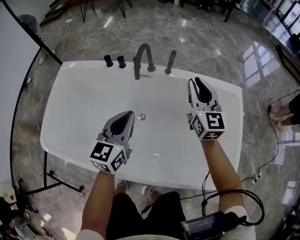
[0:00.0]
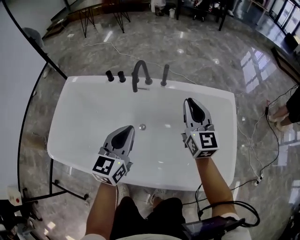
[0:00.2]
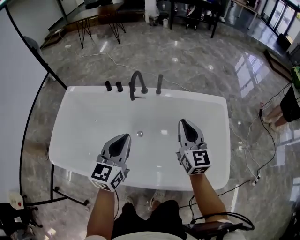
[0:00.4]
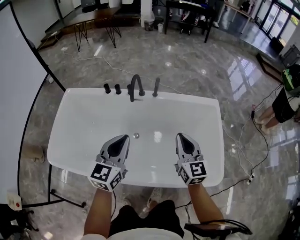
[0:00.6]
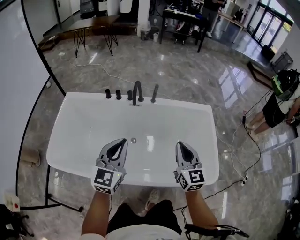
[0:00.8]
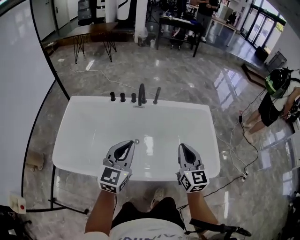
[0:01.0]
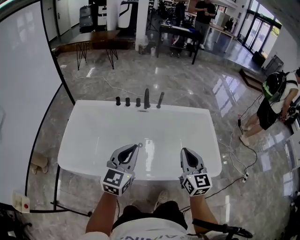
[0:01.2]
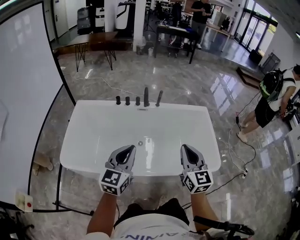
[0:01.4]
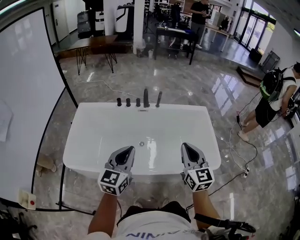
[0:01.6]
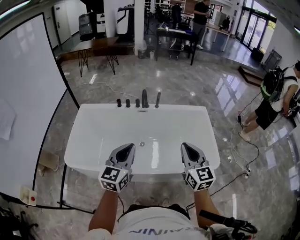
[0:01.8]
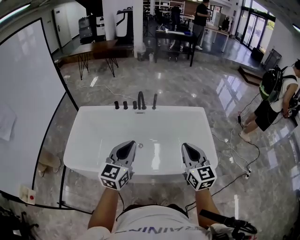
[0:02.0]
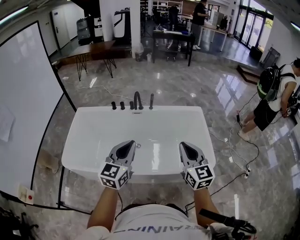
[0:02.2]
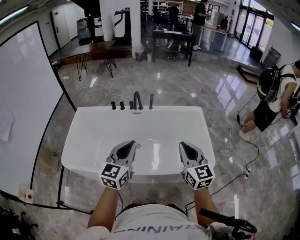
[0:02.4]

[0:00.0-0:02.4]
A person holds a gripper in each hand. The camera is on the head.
0:00.0 to 0:01.2: Both grippers move backward and upward, about 40 cm.
0:01.2 to 0:02.4: The right gripper heads to the right, backward and upward, covering some 15 cm, while the left gripper moves to the right and backward, approximately 15 cm.

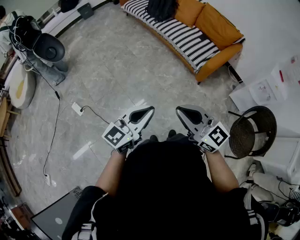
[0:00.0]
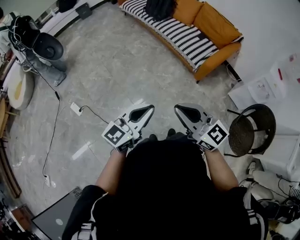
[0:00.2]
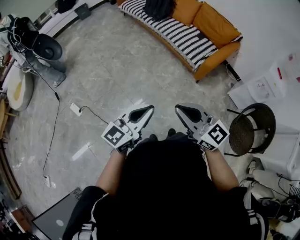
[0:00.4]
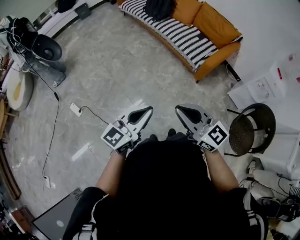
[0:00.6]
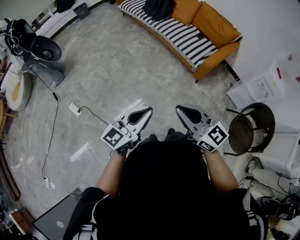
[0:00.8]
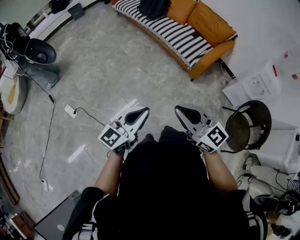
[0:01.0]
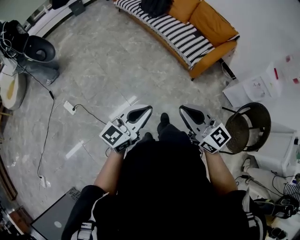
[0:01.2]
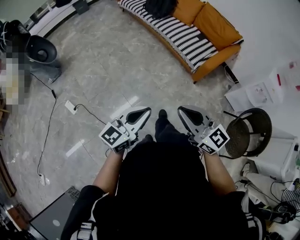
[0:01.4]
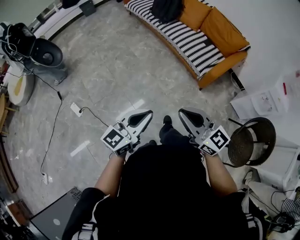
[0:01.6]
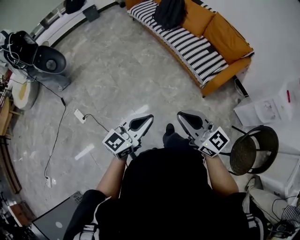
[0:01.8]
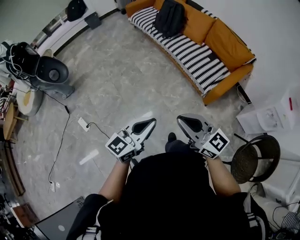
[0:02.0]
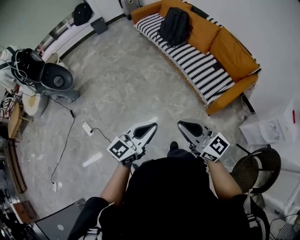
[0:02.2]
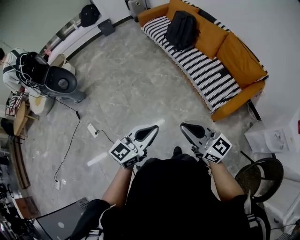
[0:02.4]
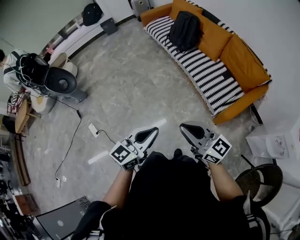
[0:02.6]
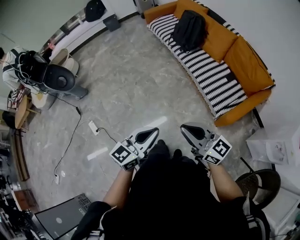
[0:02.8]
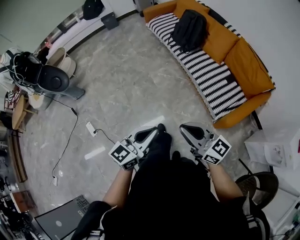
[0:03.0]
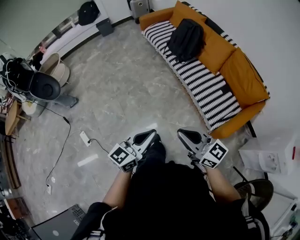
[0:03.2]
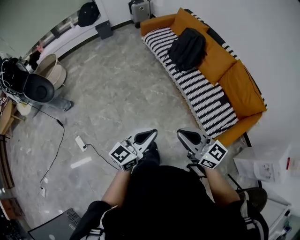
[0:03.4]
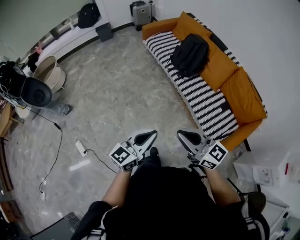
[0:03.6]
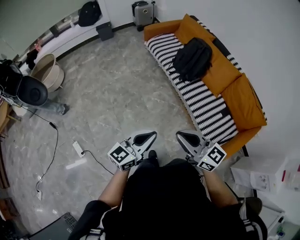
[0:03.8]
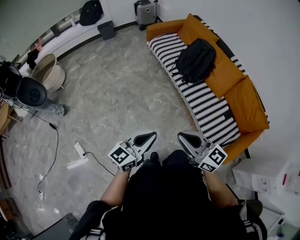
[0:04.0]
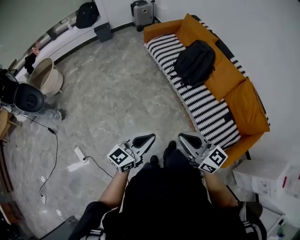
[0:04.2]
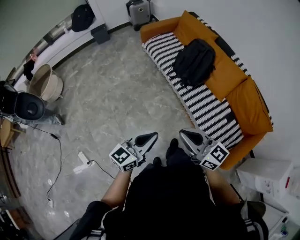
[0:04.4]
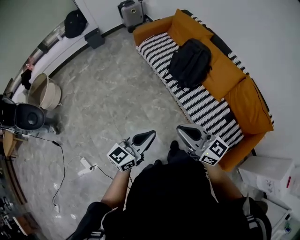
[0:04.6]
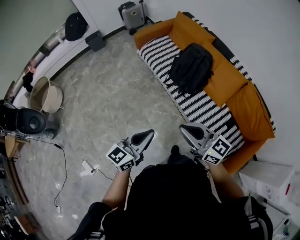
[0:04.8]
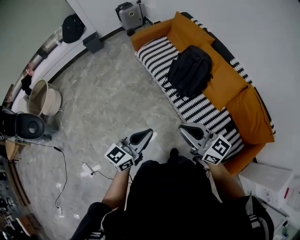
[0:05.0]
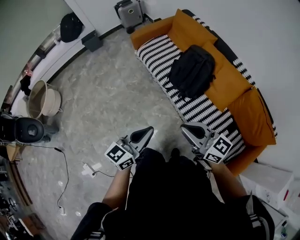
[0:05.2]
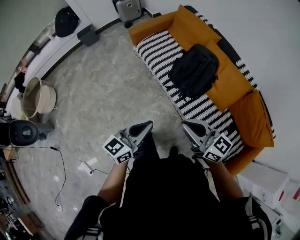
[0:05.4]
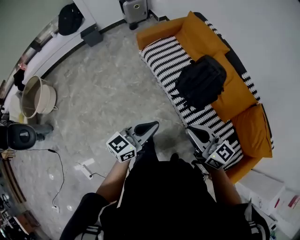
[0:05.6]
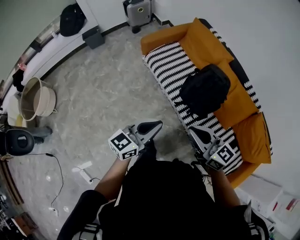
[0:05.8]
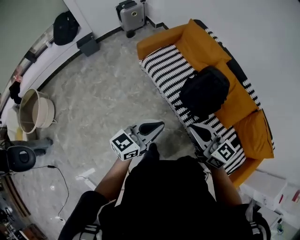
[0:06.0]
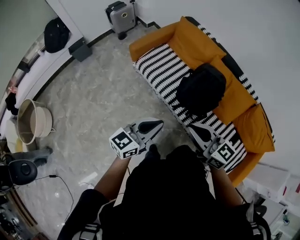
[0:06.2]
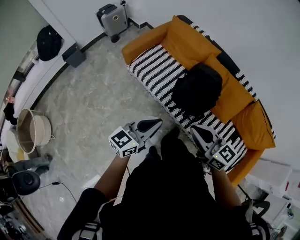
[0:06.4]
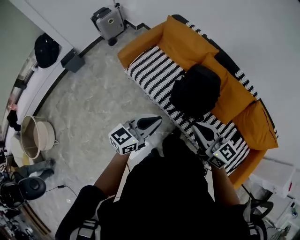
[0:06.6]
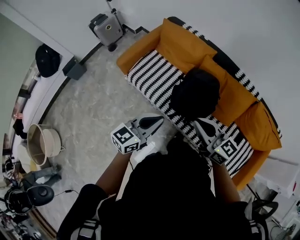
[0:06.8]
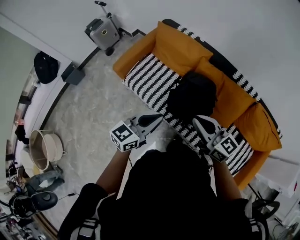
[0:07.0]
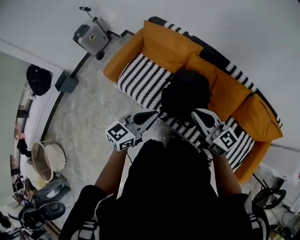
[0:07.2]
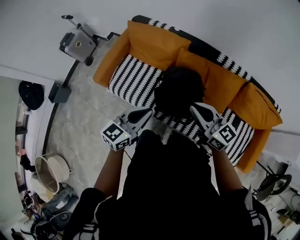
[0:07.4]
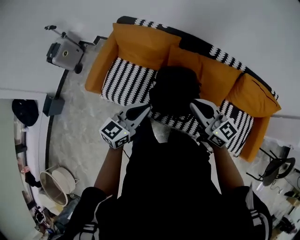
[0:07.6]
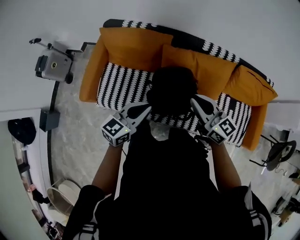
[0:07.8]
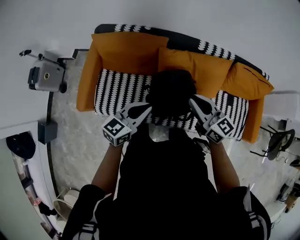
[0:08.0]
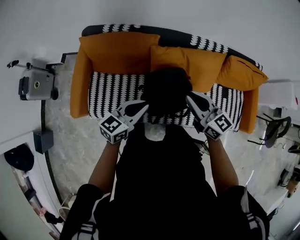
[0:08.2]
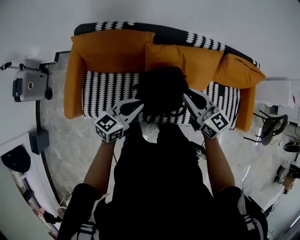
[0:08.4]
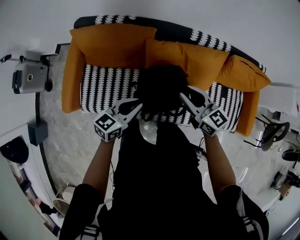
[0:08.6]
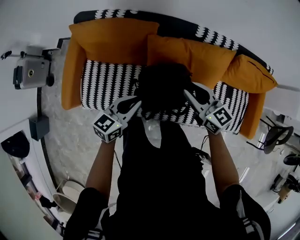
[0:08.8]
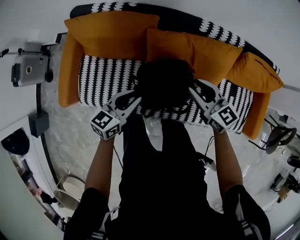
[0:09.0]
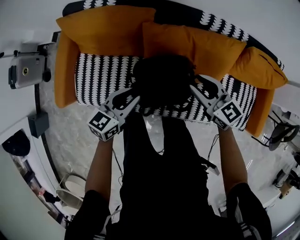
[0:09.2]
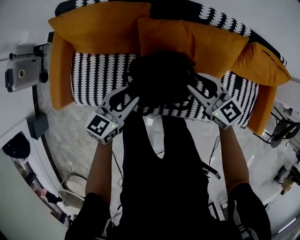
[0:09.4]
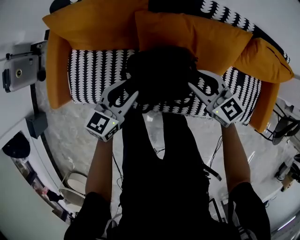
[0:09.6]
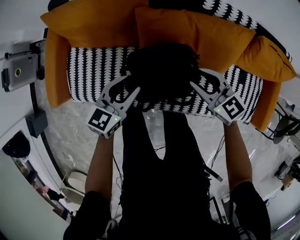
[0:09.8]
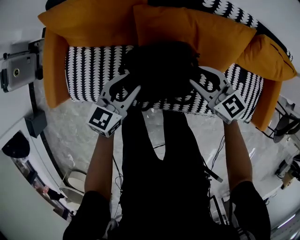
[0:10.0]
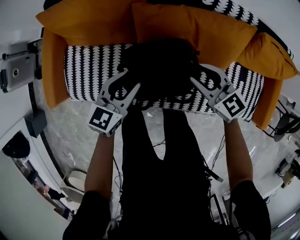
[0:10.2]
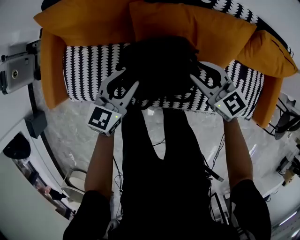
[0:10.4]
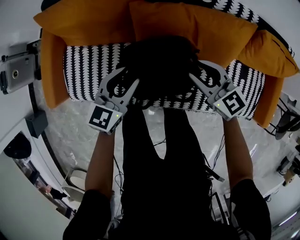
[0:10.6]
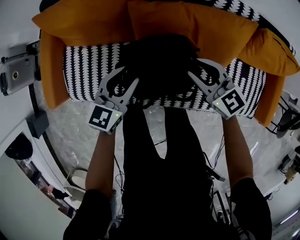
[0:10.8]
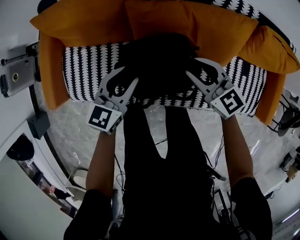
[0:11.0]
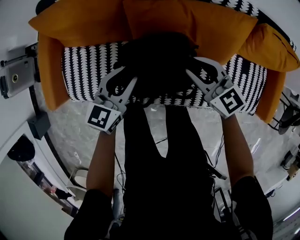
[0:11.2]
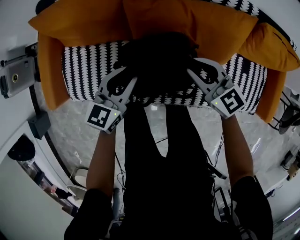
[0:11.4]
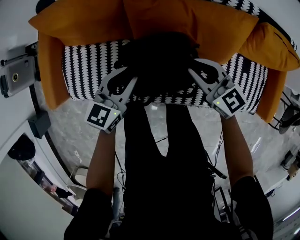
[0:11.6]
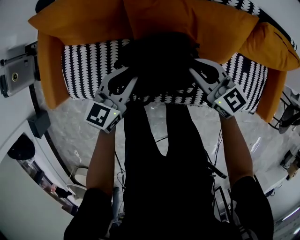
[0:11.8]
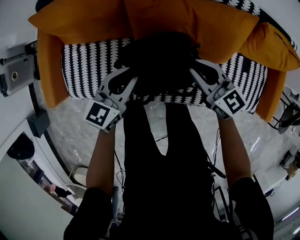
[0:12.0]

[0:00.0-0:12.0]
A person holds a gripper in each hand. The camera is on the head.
0:00.0 to 0:01.6: Both grippers travel together forward, roughly 10 cm.
0:01.6 to 0:03.0: Both grippers move forward, approximately 30 cm.
0:03.0 to 0:04.4: The two grippers go about 35 cm forward.
0:04.4 to 0:06.0: The two grippers travel together, forward, approximately 40 cm.
0:06.0 to 0:07.6: The left gripper ends up about 35 cm from where it was, and swivels approximately 30 degrees. The right gripper moves approximately 35 cm, and turns by approximately 30 degrees.
0:07.6 to 0:09.0: Both grippers travel together downward and forward, some 20 cm. The right gripper opens its fingers.
0:09.0 to 0:10.4: The grippers both shift downward by about 10 cm.
0:10.4 to 0:12.0: The grippers move only a little.

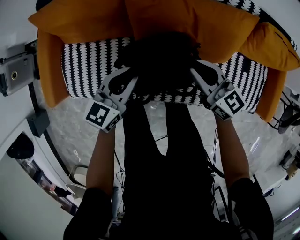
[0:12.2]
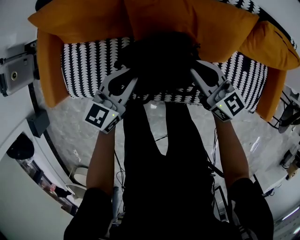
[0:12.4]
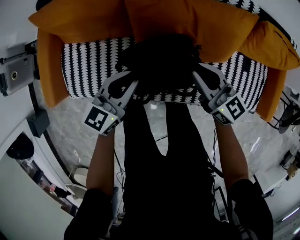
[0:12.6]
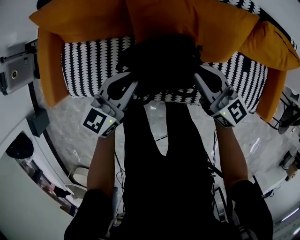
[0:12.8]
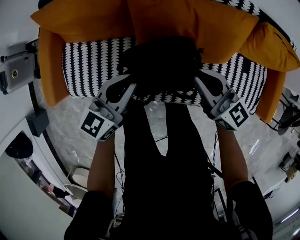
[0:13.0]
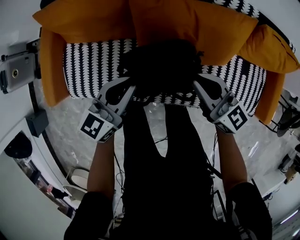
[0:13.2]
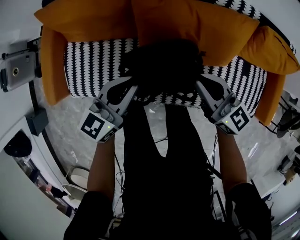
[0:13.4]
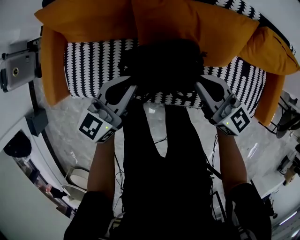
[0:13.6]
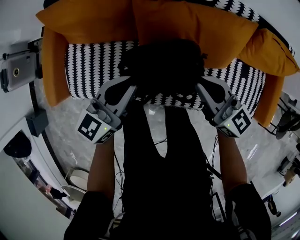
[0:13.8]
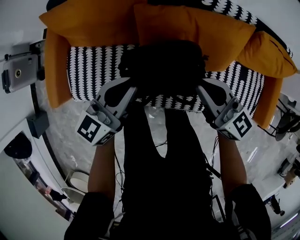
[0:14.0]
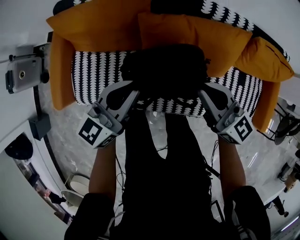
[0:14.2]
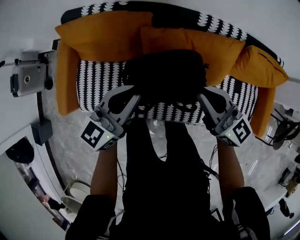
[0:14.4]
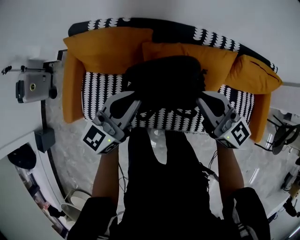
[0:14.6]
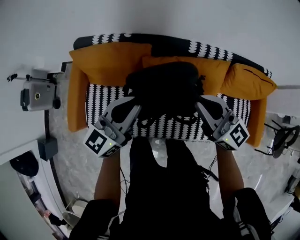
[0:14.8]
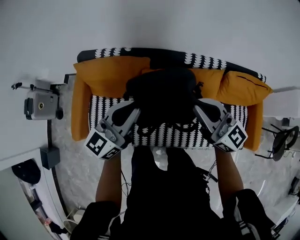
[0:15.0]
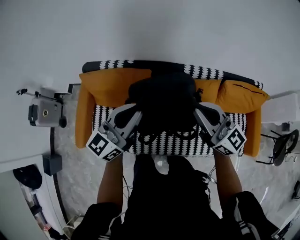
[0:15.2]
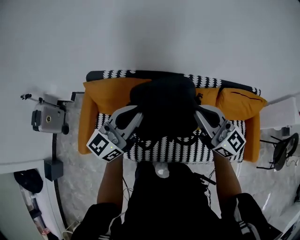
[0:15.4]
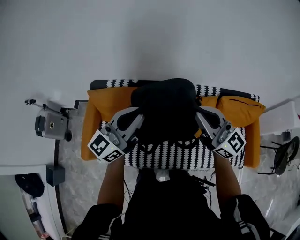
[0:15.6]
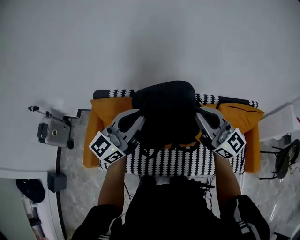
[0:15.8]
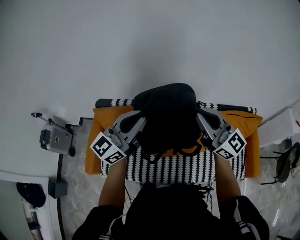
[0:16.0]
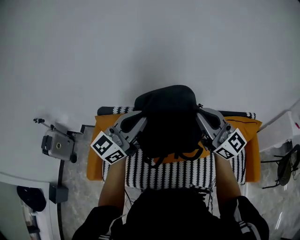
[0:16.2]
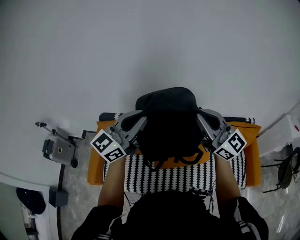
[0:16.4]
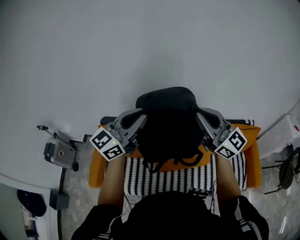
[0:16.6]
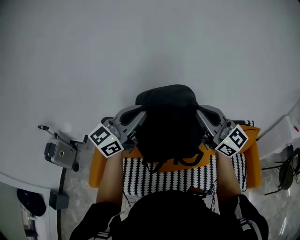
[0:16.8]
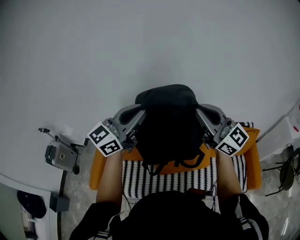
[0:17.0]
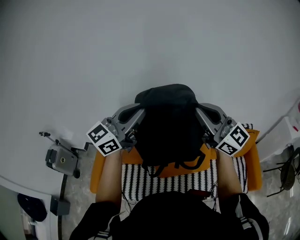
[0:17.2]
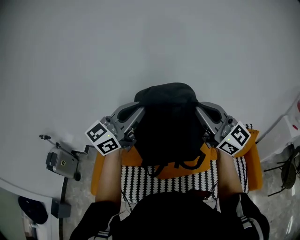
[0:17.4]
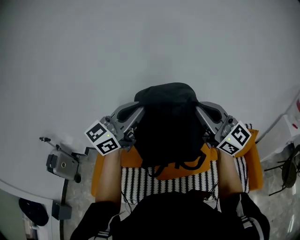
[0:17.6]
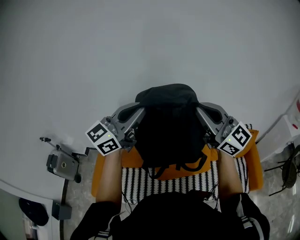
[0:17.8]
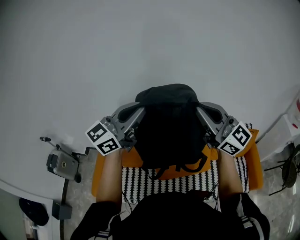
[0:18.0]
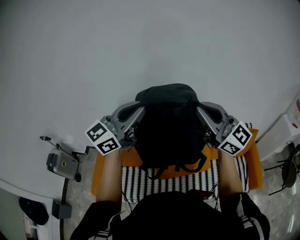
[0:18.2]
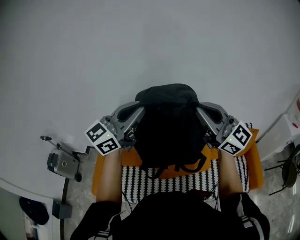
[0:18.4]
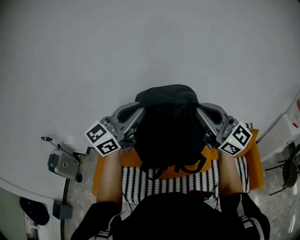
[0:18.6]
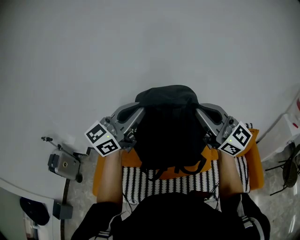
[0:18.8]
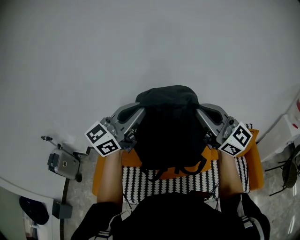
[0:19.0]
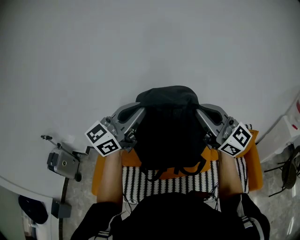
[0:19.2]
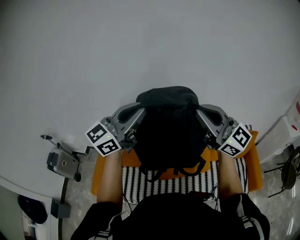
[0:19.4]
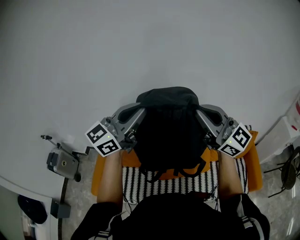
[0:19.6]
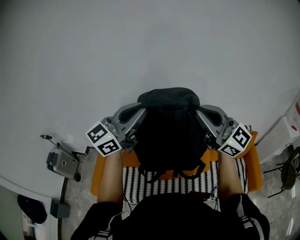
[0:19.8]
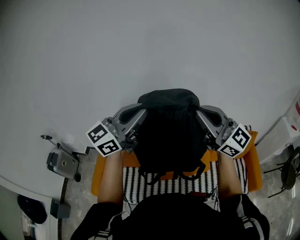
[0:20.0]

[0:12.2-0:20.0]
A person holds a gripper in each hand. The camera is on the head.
0:12.2 to 0:13.8: Both grippers travel together upward, about 10 cm.
0:13.8 to 0:15.4: The two grippers go about 30 cm upward. The left gripper changes its angle by about 20 degrees, while the right gripper changes its angle by about 20 degrees.
0:15.4 to 0:16.8: Both grippers travel together upward, some 20 cm.
0:16.8 to 0:18.4: The two grippers go approximately 5 cm upward.
0:18.4 to 0:20.0: The grippers stay close to where they were, moving slightly.

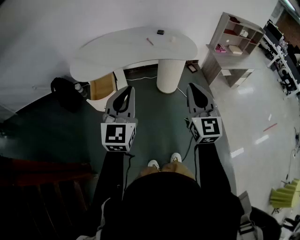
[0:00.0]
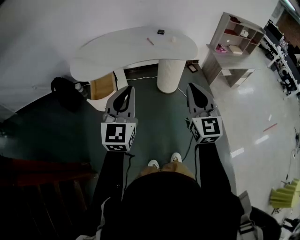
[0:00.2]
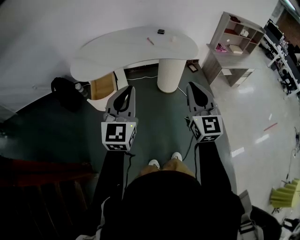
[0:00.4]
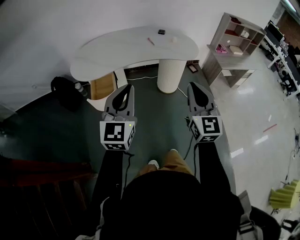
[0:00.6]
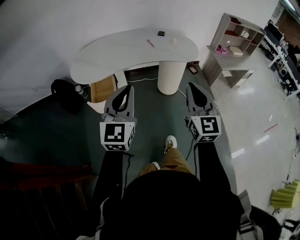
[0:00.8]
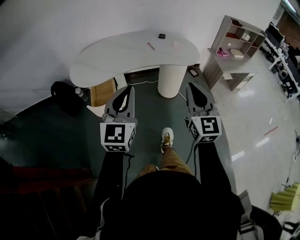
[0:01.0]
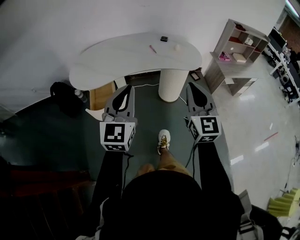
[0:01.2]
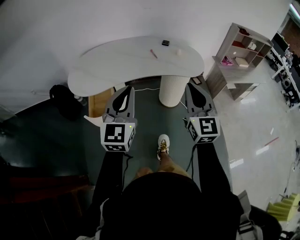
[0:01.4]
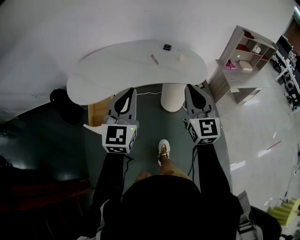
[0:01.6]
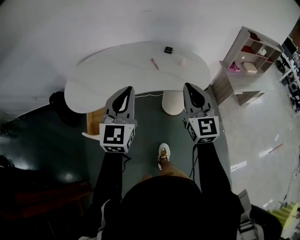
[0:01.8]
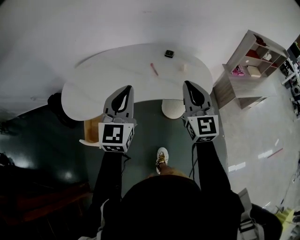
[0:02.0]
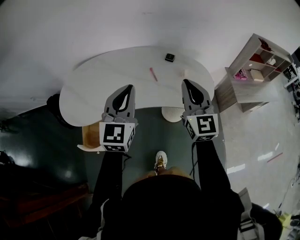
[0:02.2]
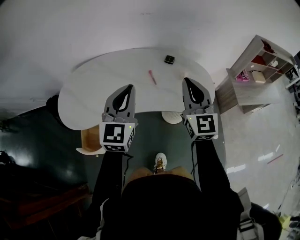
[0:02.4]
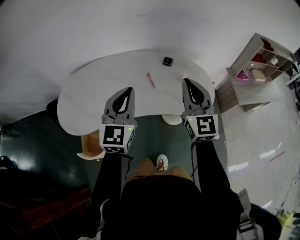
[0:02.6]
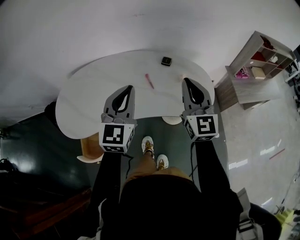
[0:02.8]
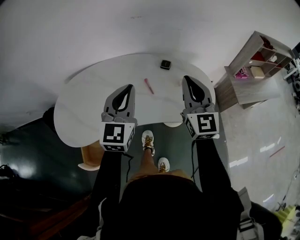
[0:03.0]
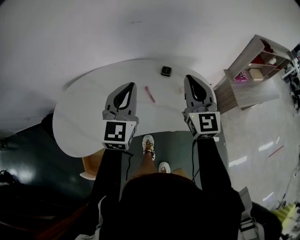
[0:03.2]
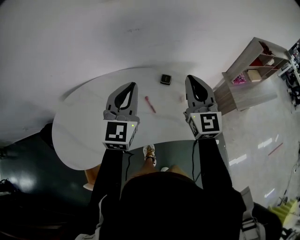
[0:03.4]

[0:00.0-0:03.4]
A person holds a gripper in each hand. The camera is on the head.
0:00.0 to 0:01.6: The two grippers go about 20 cm forward.
0:01.6 to 0:03.4: Both grippers are carried forward, some 40 cm.
